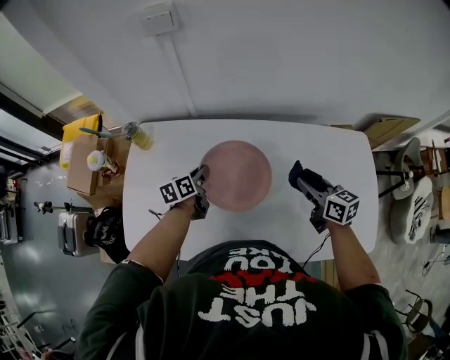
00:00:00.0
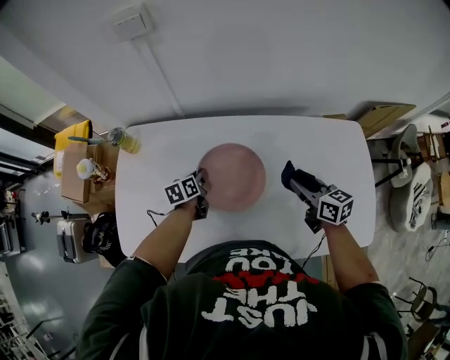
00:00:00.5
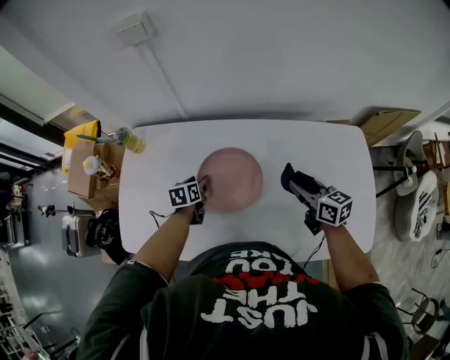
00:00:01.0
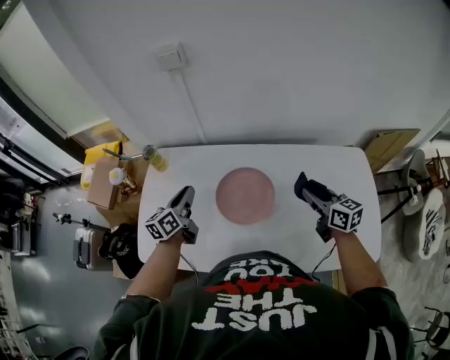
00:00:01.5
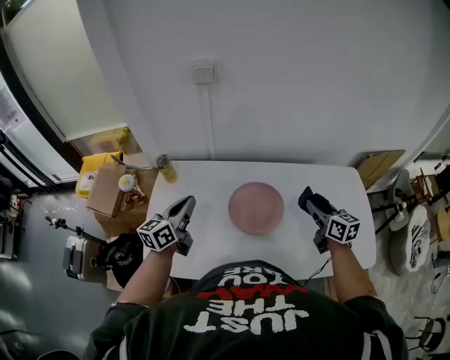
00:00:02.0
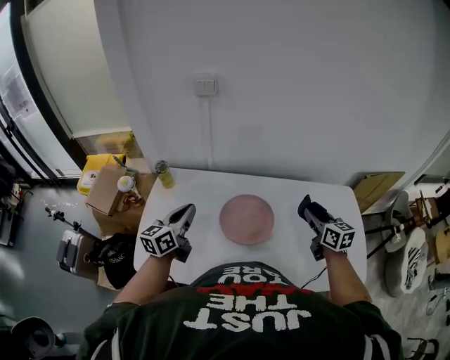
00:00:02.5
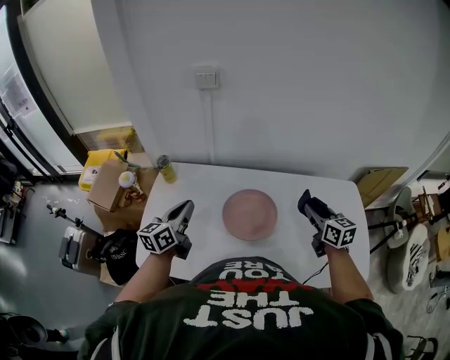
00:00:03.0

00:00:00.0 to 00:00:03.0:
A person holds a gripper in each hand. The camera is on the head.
00:00:00.0 to 00:00:01.5: The right gripper ends up approximately 5 cm from where it was. The left gripper heads upward, to the left and backward, covering roughly 15 cm, turns by about 20 degrees, and opens, then closes again.
00:00:01.5 to 00:00:03.0: The left gripper travels upward by approximately 5 cm.

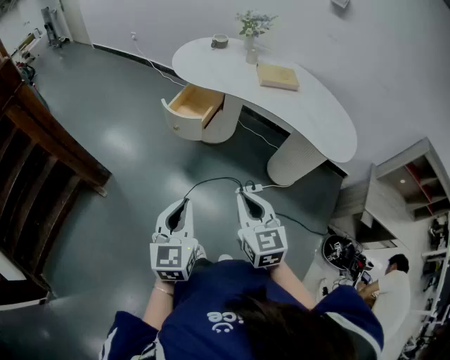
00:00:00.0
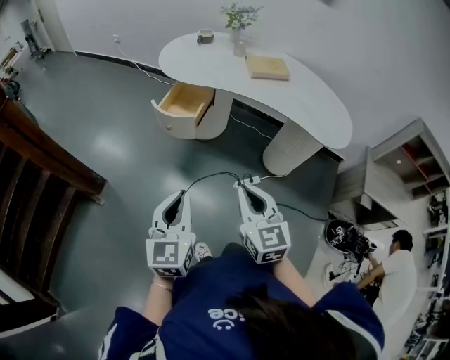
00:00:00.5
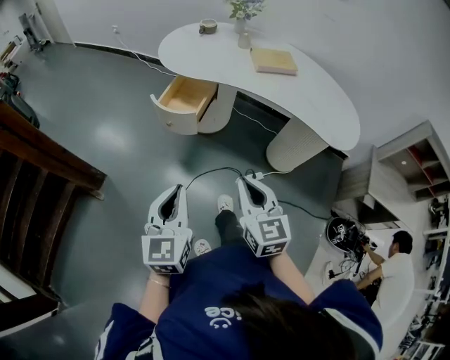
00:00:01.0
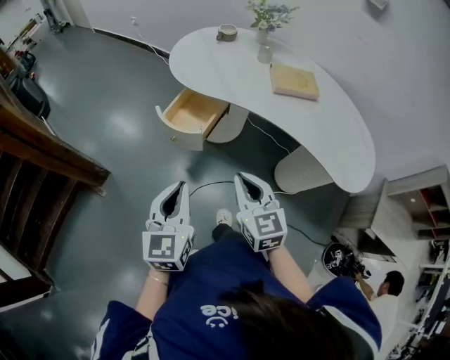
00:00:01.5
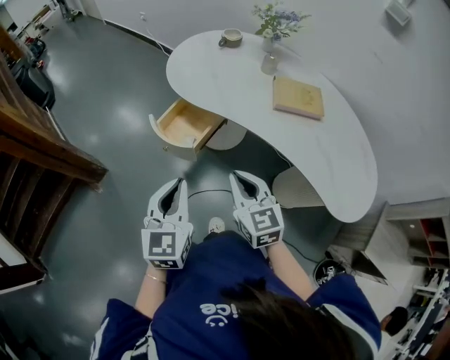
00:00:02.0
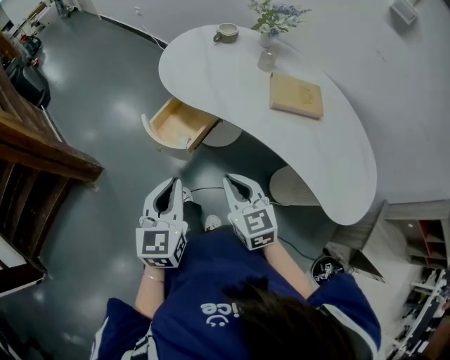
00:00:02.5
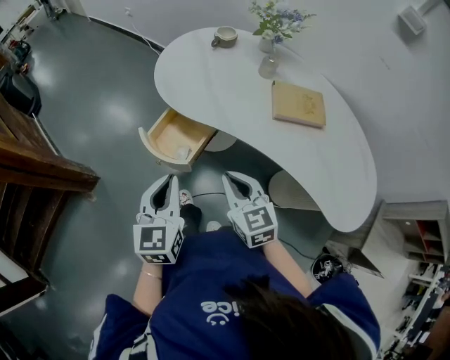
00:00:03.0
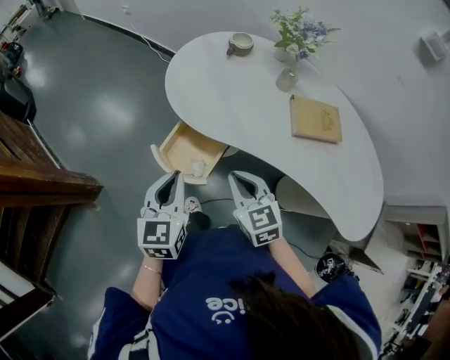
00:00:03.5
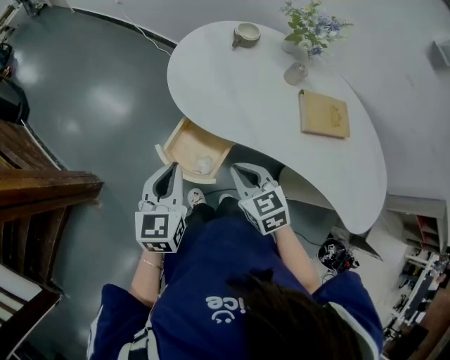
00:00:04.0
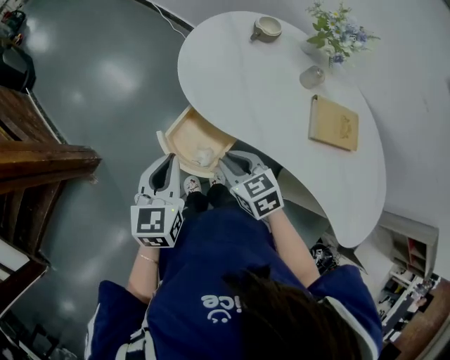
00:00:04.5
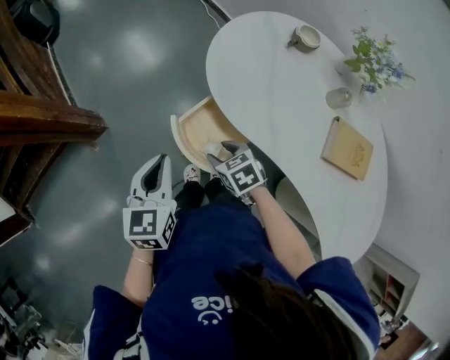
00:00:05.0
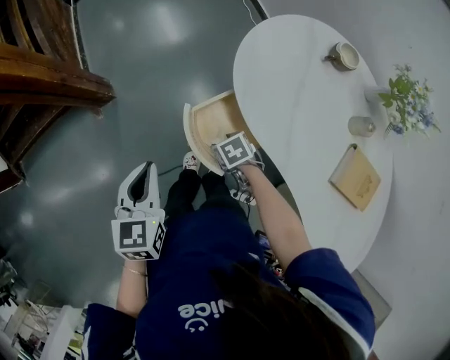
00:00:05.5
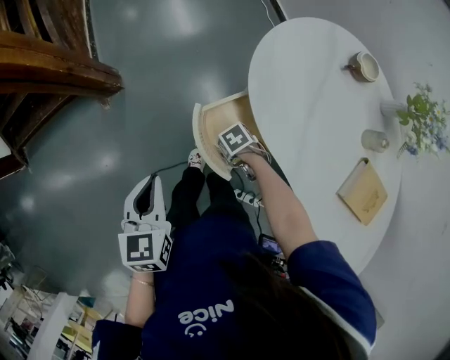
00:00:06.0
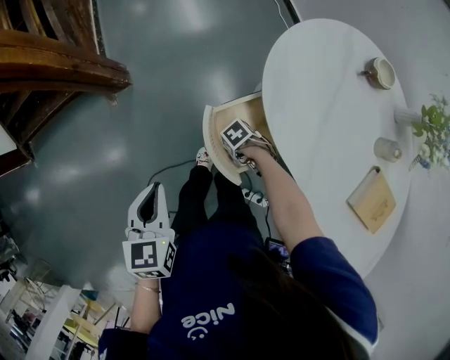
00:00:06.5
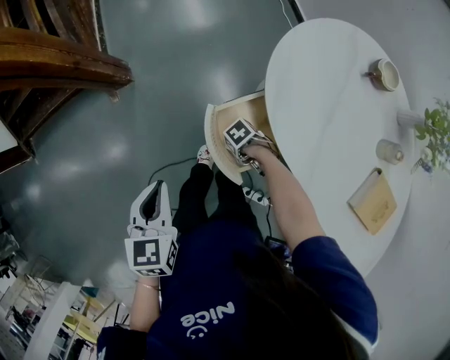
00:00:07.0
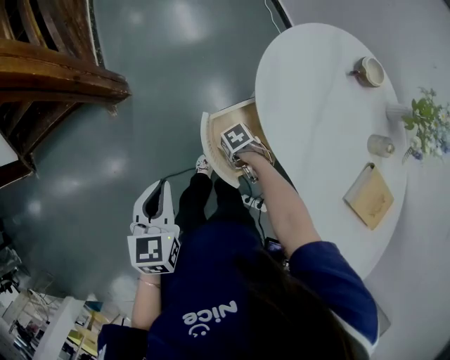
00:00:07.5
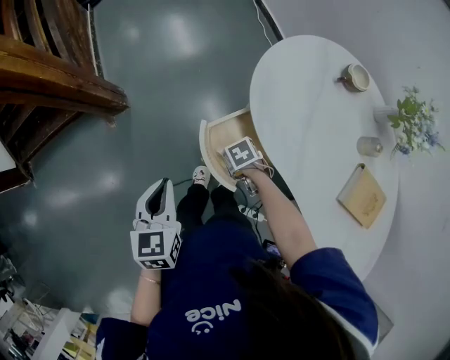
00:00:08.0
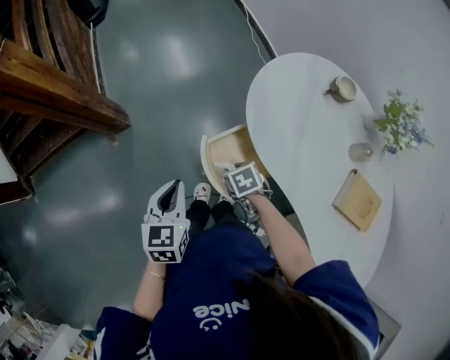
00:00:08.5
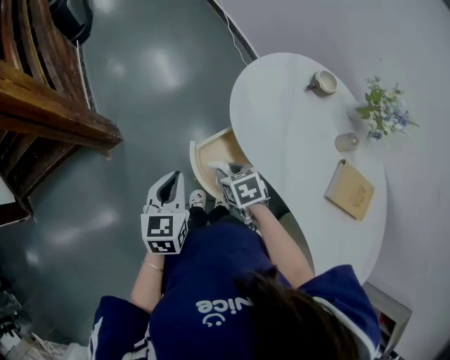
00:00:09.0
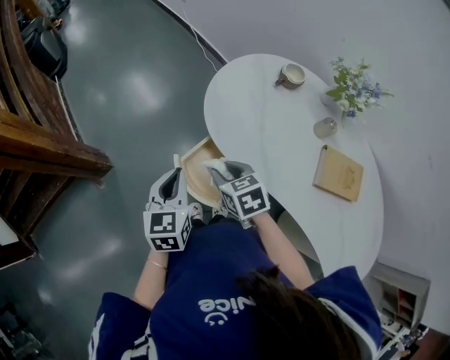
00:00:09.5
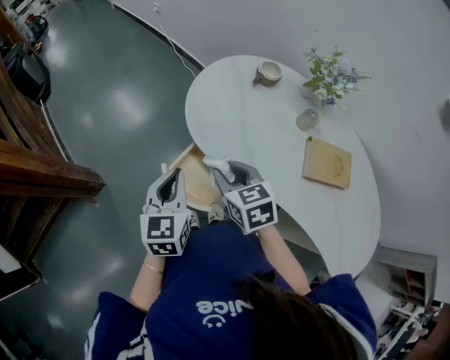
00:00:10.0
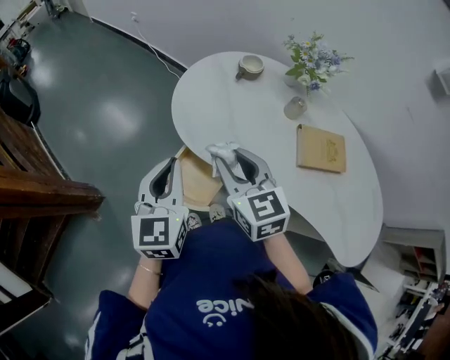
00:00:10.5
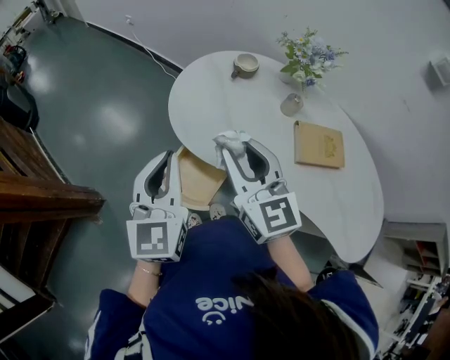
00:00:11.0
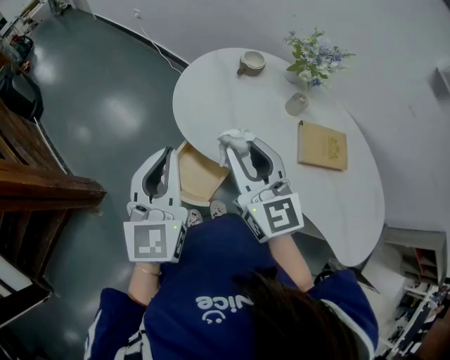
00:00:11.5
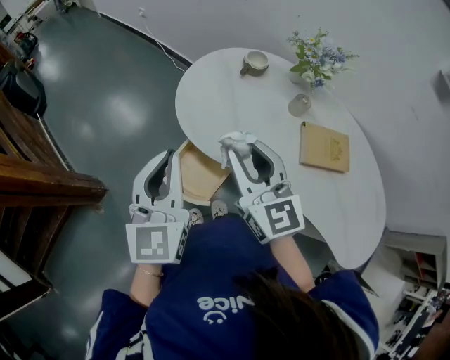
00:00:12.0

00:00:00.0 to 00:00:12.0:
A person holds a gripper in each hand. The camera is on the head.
00:00:00.0 to 00:00:02.0: Both grippers move forward, approximately 30 cm.
00:00:02.0 to 00:00:04.0: Both grippers travel together forward, some 25 cm.
00:00:04.0 to 00:00:06.0: The right gripper travels downward by roughly 30 cm, angles its fingers downward, by about 30 degrees, and opens its fingers, while the left gripper ends up roughly 15 cm from where it was, and swivels about 40 degrees.
00:00:06.0 to 00:00:08.0: The right gripper closes.
00:00:08.0 to 00:00:10.0: The right gripper goes about 30 cm upward, and tilts its fingers roughly 40 degrees upward; the left gripper changes place by roughly 15 cm, and swivels roughly 30 degrees.
00:00:10.0 to 00:00:12.0: Both grippers move upward, about 15 cm. The right gripper points its fingers roughly 30 degrees further upward; the left gripper rotates about 20 degrees.

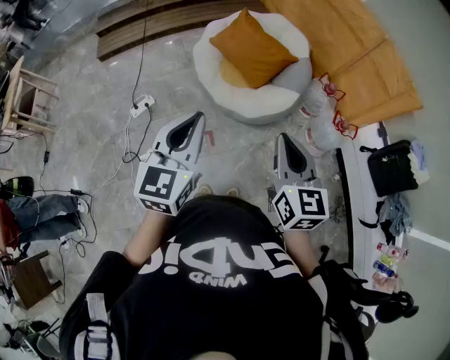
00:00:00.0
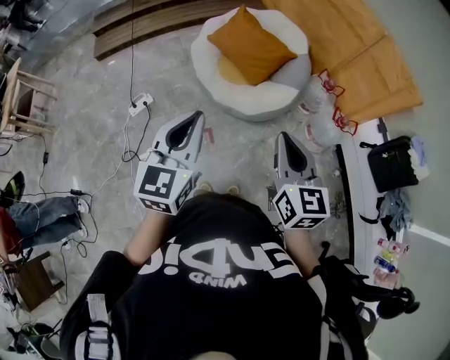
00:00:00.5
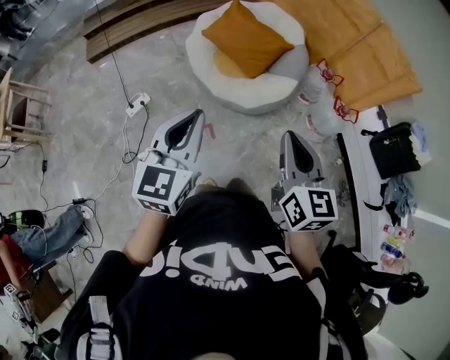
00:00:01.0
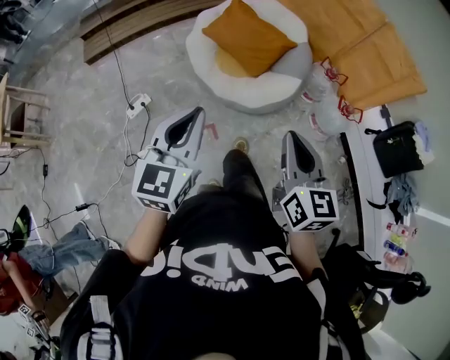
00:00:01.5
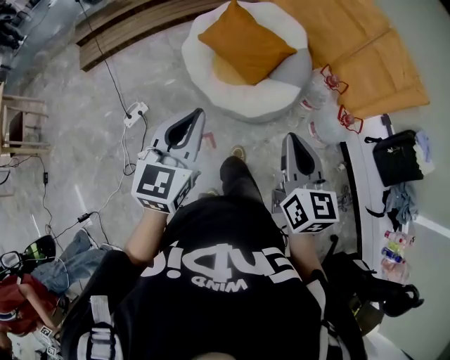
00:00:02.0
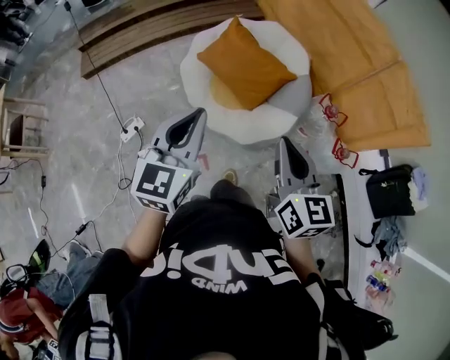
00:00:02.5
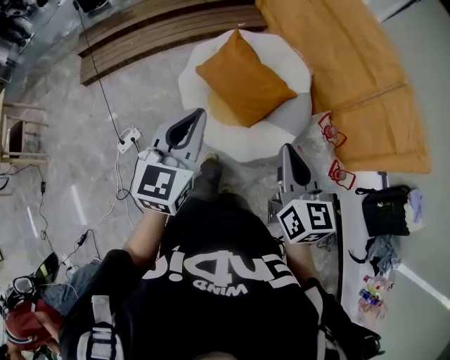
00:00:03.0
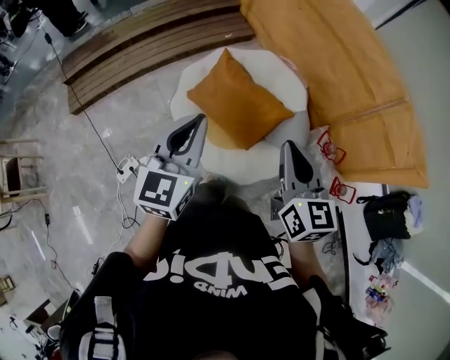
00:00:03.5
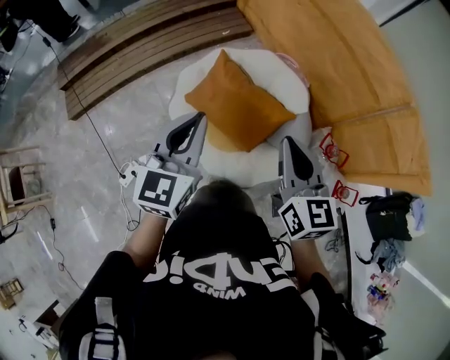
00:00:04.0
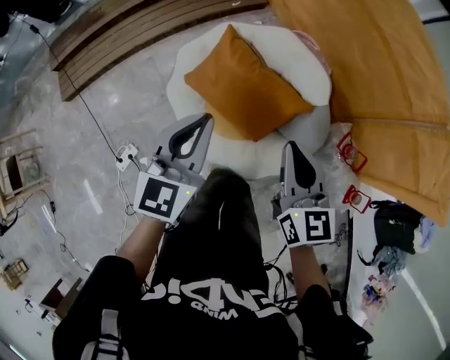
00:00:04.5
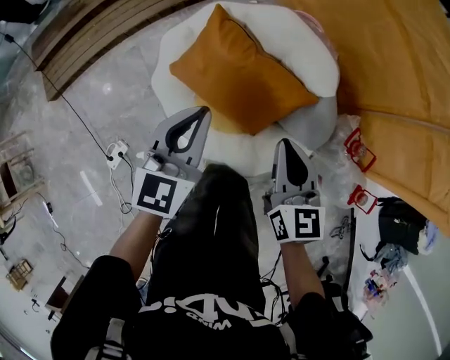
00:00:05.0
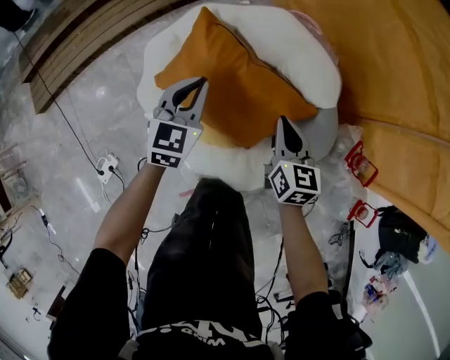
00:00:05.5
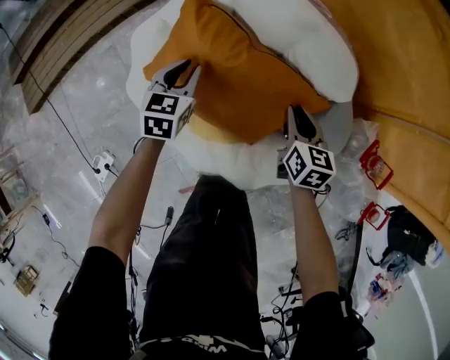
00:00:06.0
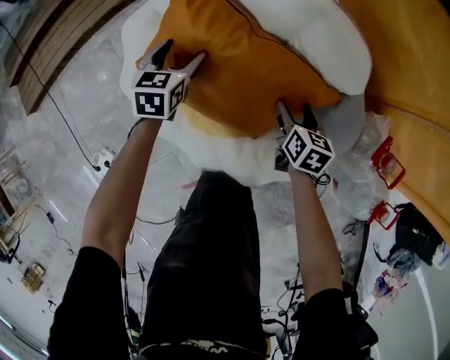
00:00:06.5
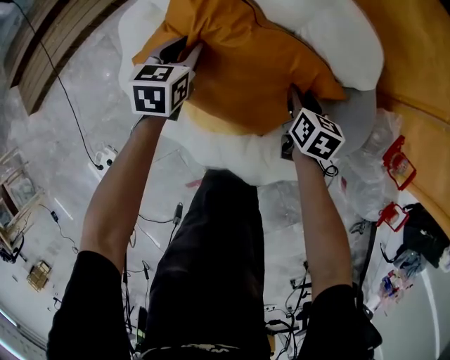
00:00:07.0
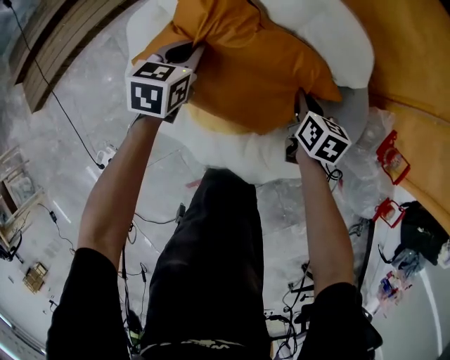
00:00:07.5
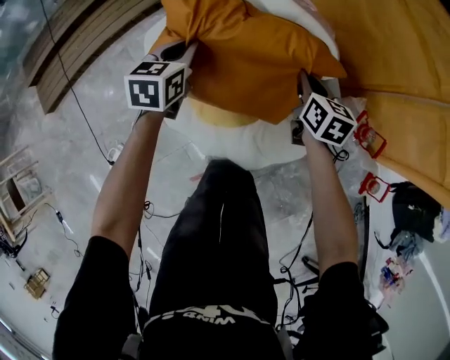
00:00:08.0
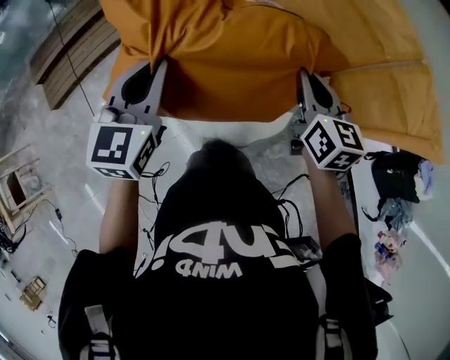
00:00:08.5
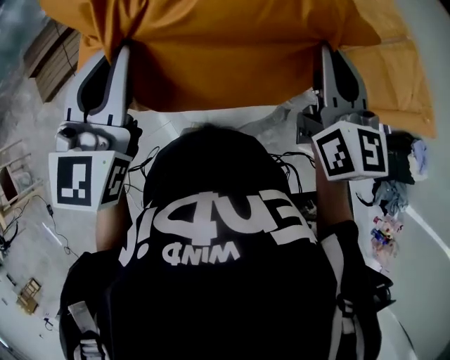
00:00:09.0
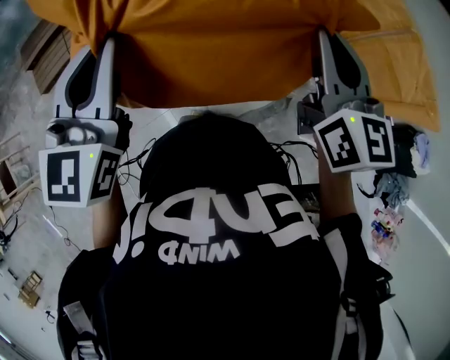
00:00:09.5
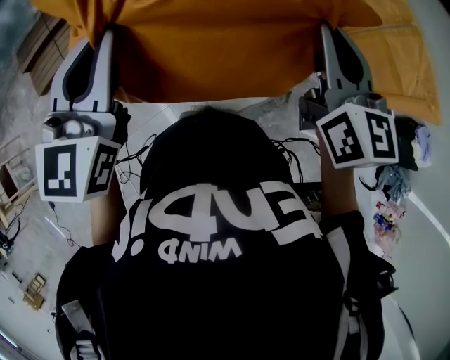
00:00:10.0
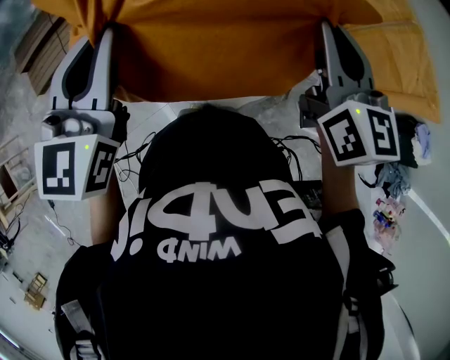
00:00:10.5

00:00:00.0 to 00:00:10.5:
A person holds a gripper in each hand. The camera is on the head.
00:00:00.0 to 00:00:02.0: Both grippers travel together forward, some 10 cm.
00:00:02.0 to 00:00:04.0: The pair of grippers is taken forward, about 50 cm.
00:00:04.0 to 00:00:06.5: The right gripper is displaced downward by roughly 60 cm, angles its fingers downward, by about 30 degrees, and opens. Meanwhile the left gripper goes approximately 70 cm downward and forward, angles its fingers downward, by roughly 30 degrees, and opens up.
00:00:06.5 to 00:00:08.5: The right gripper shifts some 60 cm upward, changes its angle by approximately 30 degrees, and closes. Meanwhile the left gripper shifts about 60 cm upward and backward, rotates approximately 30 degrees, and closes up.
00:00:08.5 to 00:00:10.5: Both grippers move upward and backward, approximately 15 cm.

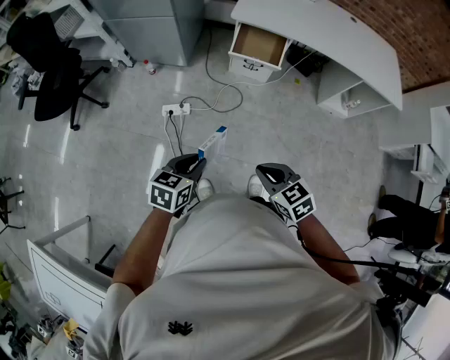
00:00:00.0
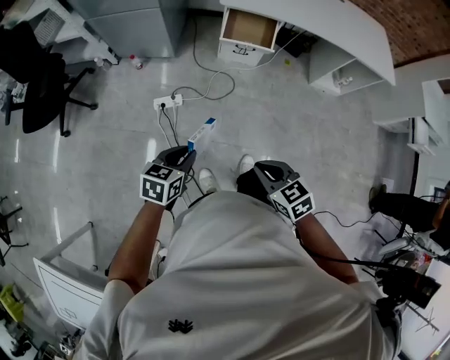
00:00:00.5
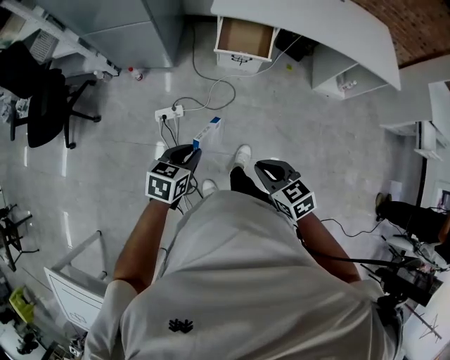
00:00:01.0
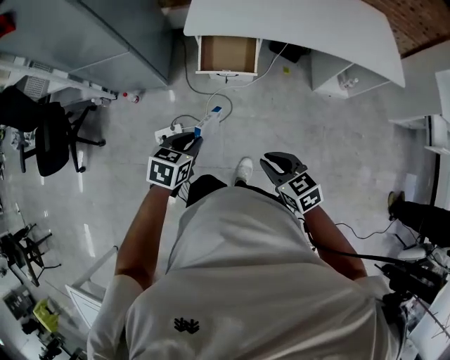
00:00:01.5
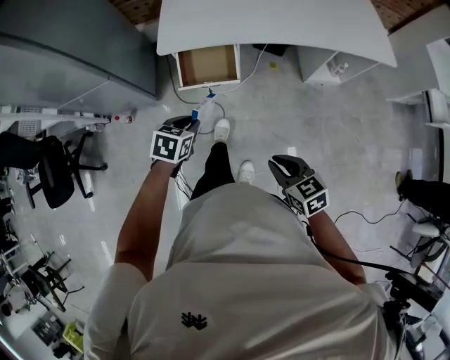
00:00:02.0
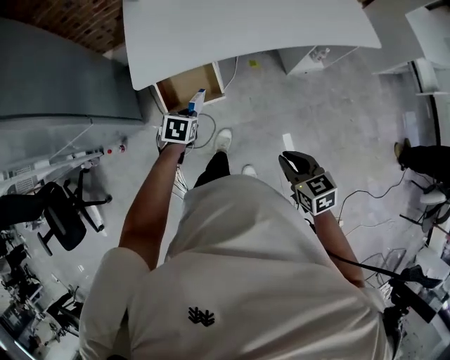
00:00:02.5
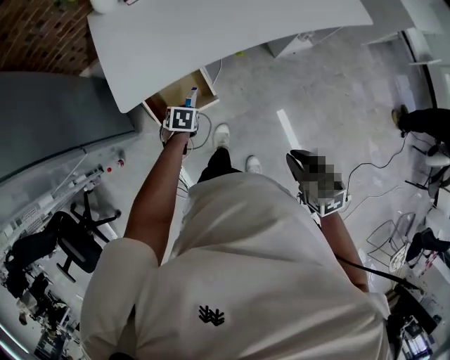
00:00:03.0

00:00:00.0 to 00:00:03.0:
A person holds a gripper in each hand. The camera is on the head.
00:00:00.0 to 00:00:01.5: The two grippers go some 30 cm forward and to the right.
00:00:01.5 to 00:00:03.0: The left gripper shifts roughly 50 cm forward and downward, and turns by some 30 degrees. Meanwhile the right gripper is displaced forward and to the right by some 25 cm, and changes its angle by approximately 40 degrees.
